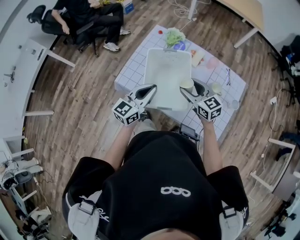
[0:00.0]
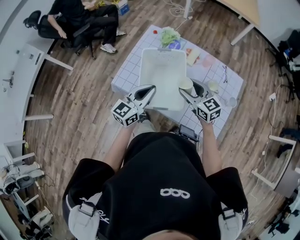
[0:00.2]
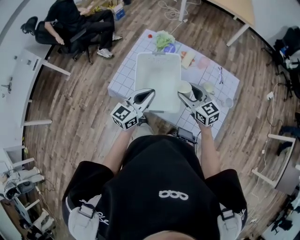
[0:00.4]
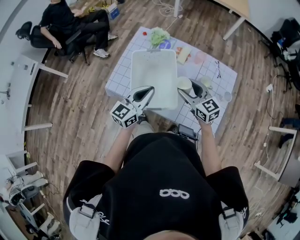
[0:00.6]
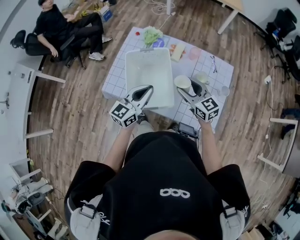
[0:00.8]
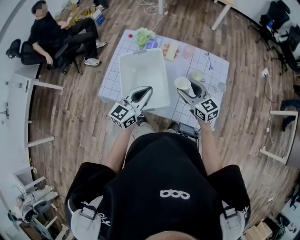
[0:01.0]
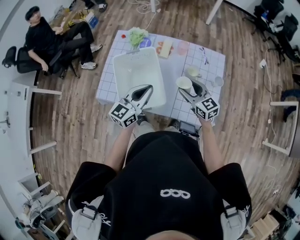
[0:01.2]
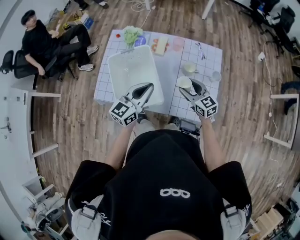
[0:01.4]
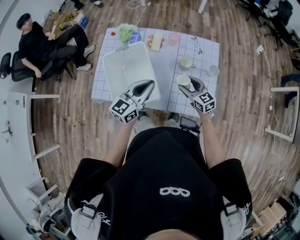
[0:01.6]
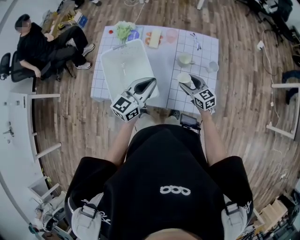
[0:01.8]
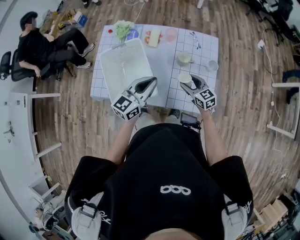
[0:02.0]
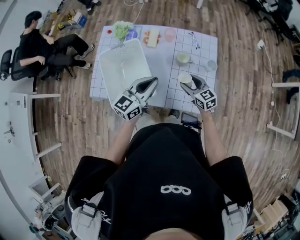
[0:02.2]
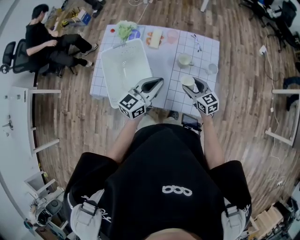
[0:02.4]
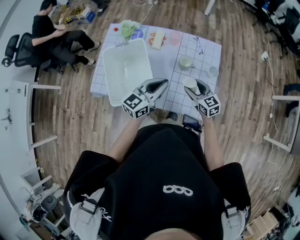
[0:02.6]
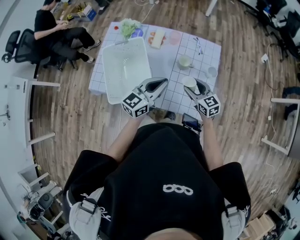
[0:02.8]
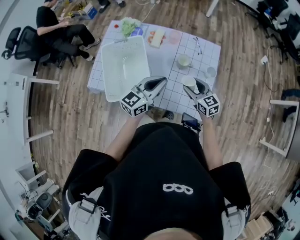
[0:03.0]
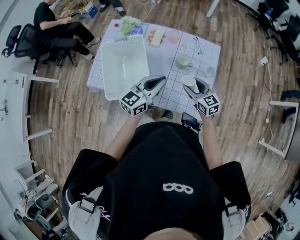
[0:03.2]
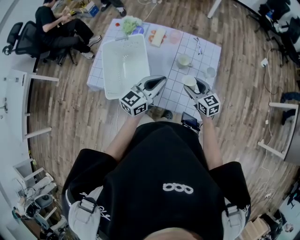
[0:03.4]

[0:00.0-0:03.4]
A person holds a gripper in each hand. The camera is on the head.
0:00.0 to 0:01.6: The right gripper is displaced to the right and downward by roughly 20 cm, and changes its angle by about 20 degrees. Meanwhile the left gripper shifts approximately 15 cm to the right.
0:01.6 to 0:03.4: The grippers both shift to the right by about 10 cm.

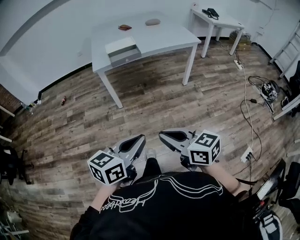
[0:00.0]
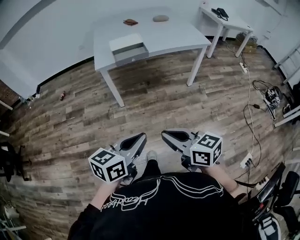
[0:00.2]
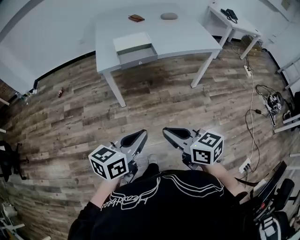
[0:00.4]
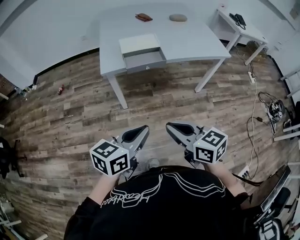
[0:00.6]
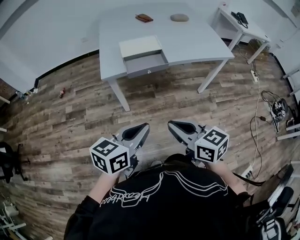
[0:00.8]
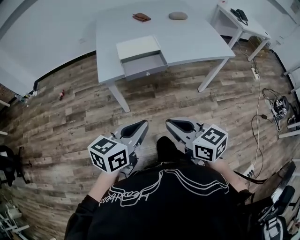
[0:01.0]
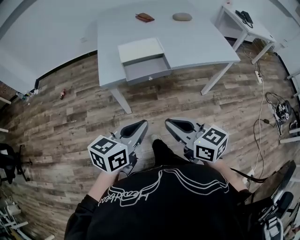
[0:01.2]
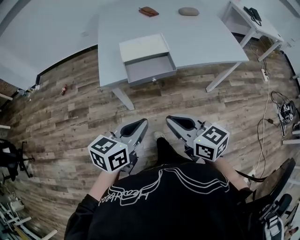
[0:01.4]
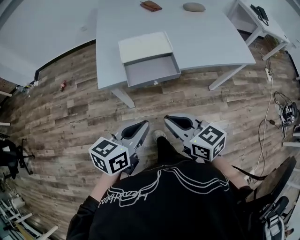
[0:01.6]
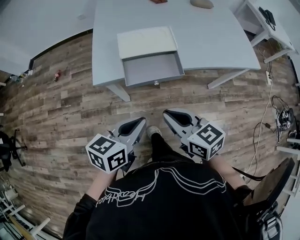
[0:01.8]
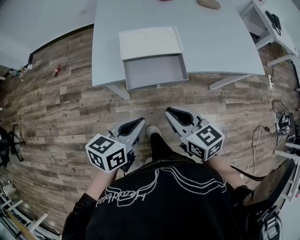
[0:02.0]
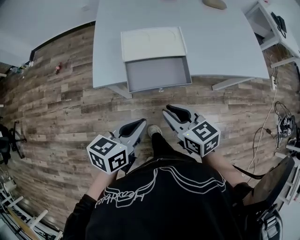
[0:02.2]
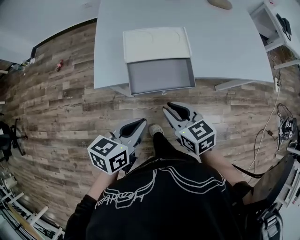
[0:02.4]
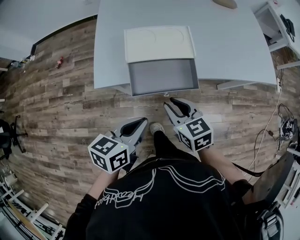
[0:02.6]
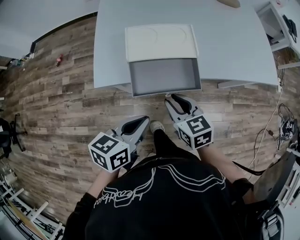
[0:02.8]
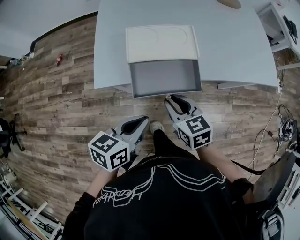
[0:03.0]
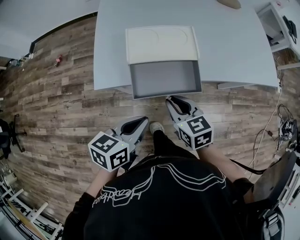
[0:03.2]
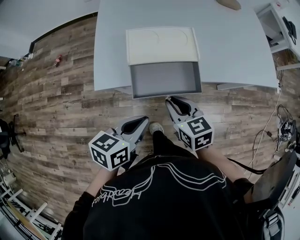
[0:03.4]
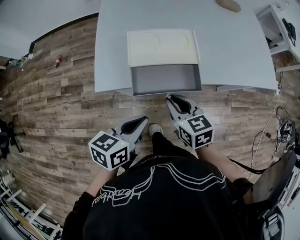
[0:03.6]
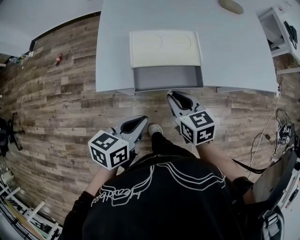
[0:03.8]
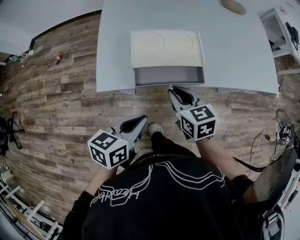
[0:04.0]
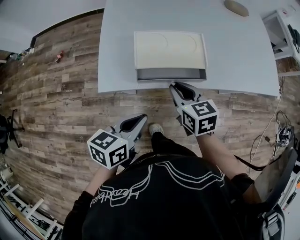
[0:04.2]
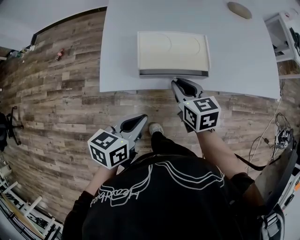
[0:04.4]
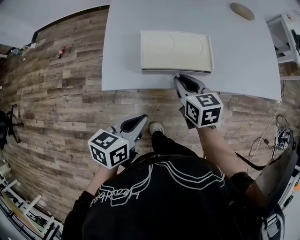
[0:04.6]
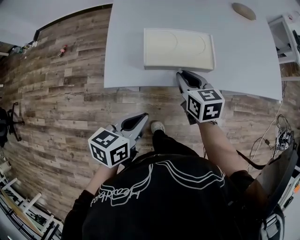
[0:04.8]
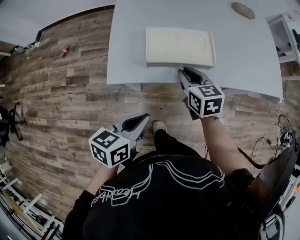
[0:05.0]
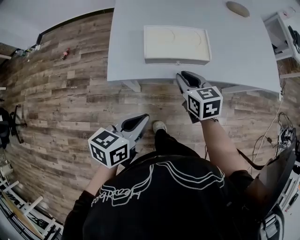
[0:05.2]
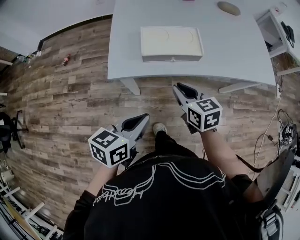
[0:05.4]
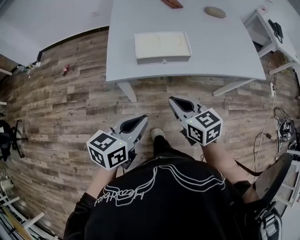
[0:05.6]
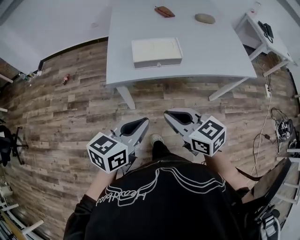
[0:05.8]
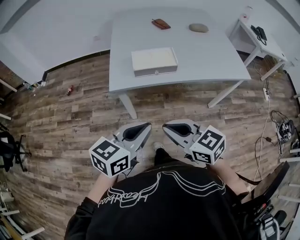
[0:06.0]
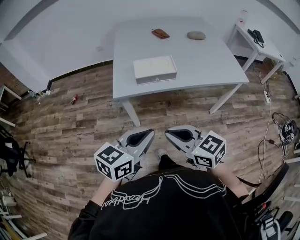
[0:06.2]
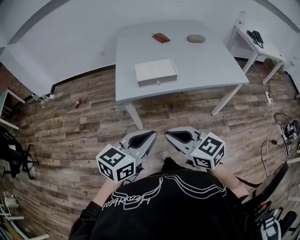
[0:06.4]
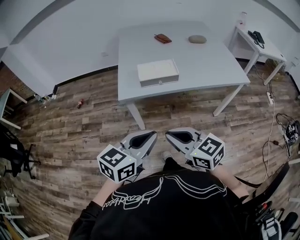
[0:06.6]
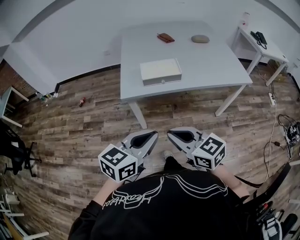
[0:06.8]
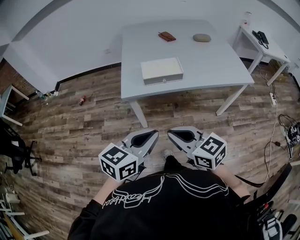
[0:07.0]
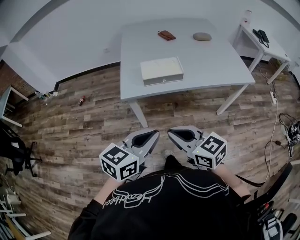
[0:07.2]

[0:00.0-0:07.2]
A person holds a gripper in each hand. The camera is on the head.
0:00.0 to 0:01.4: The two grippers travel together, forward, roughly 40 cm.
0:01.4 to 0:02.8: Both grippers move forward and downward, some 20 cm. The right gripper turns by about 20 degrees, and opens.
0:02.8 to 0:04.4: The right gripper heads forward, covering some 10 cm, while the left gripper ends up approximately 5 cm from where it was.
0:04.4 to 0:05.8: The right gripper goes about 30 cm backward and upward, and changes its angle by roughly 20 degrees, while the left gripper goes roughly 20 cm backward and upward.
0:05.8 to 0:07.2: The right gripper travels backward by roughly 10 cm; the left gripper is displaced backward and upward by roughly 10 cm.

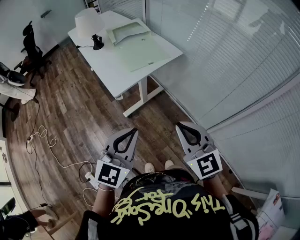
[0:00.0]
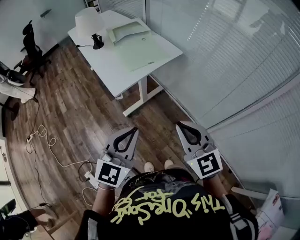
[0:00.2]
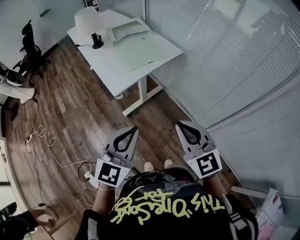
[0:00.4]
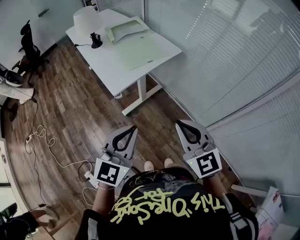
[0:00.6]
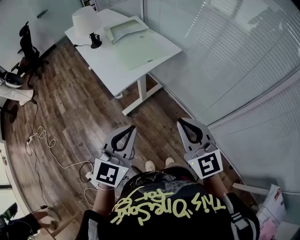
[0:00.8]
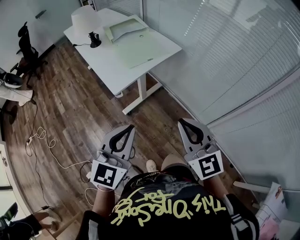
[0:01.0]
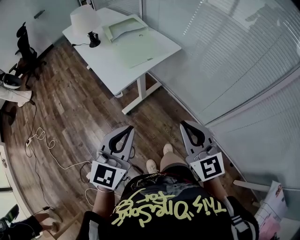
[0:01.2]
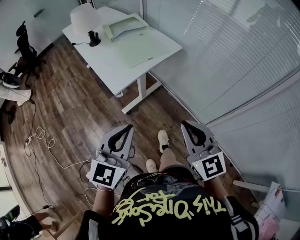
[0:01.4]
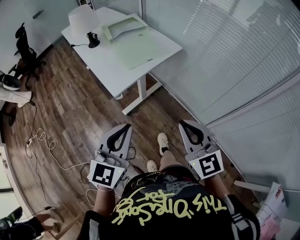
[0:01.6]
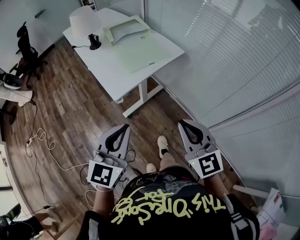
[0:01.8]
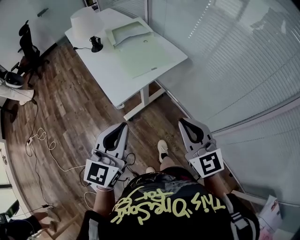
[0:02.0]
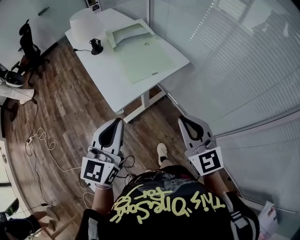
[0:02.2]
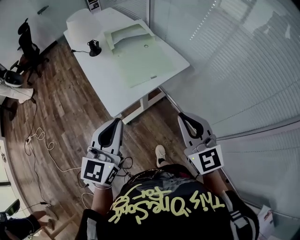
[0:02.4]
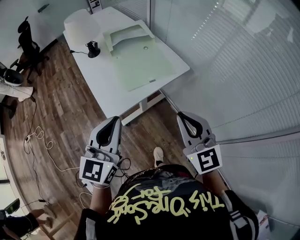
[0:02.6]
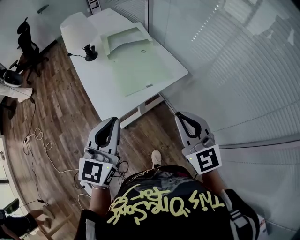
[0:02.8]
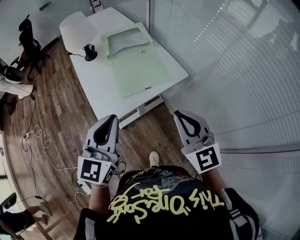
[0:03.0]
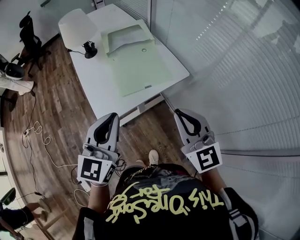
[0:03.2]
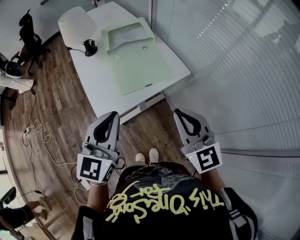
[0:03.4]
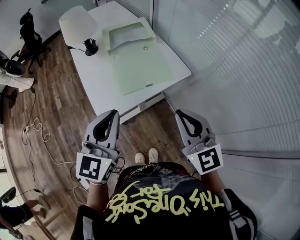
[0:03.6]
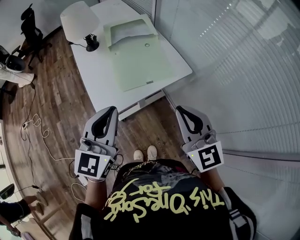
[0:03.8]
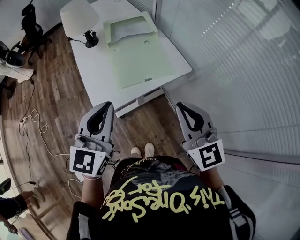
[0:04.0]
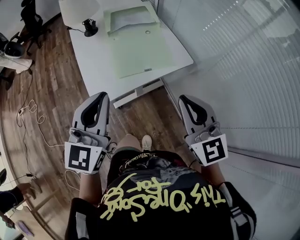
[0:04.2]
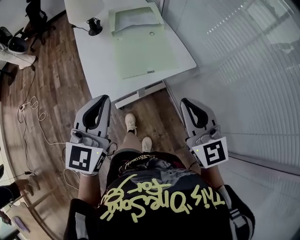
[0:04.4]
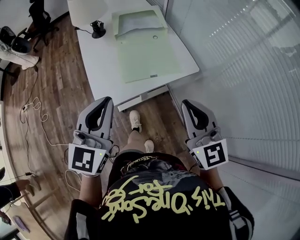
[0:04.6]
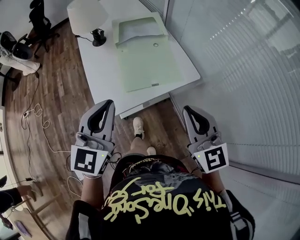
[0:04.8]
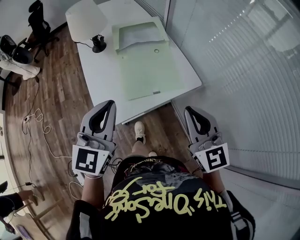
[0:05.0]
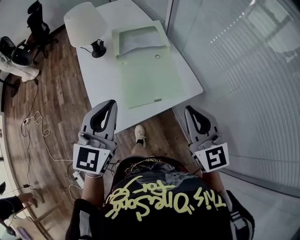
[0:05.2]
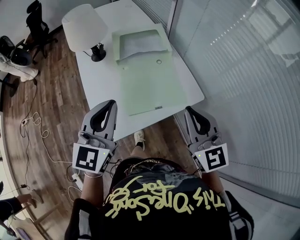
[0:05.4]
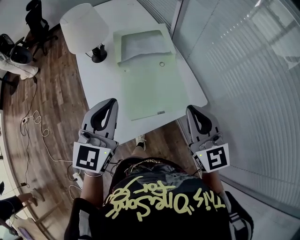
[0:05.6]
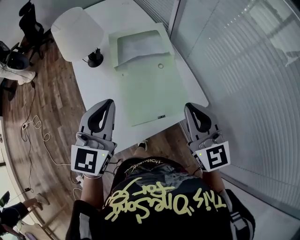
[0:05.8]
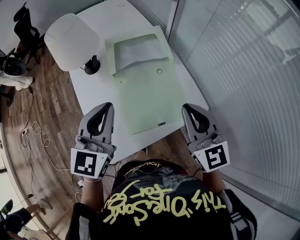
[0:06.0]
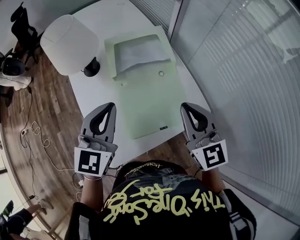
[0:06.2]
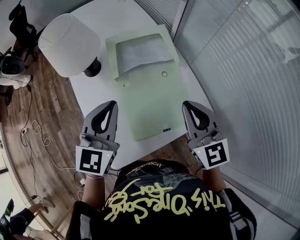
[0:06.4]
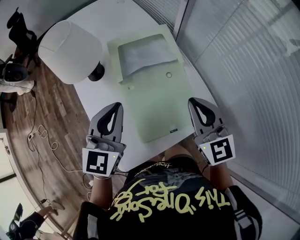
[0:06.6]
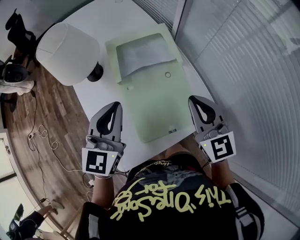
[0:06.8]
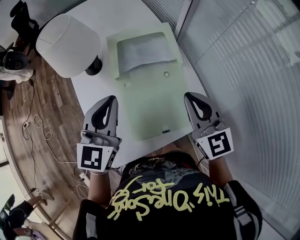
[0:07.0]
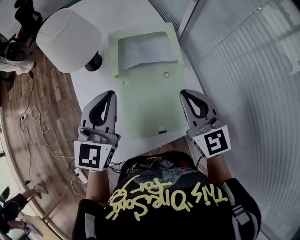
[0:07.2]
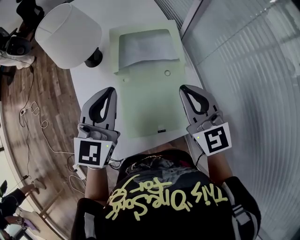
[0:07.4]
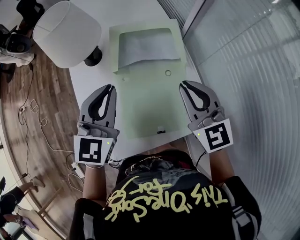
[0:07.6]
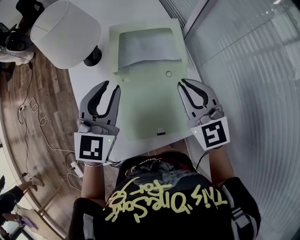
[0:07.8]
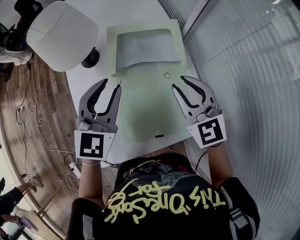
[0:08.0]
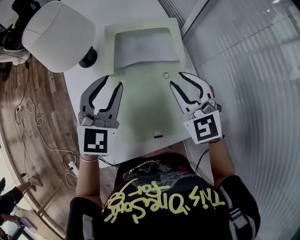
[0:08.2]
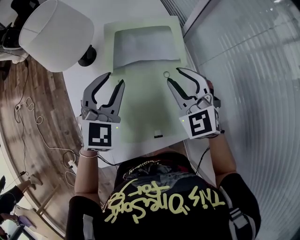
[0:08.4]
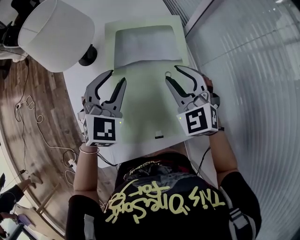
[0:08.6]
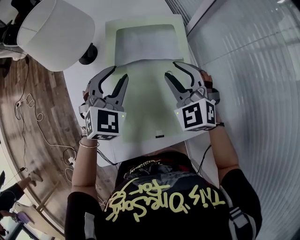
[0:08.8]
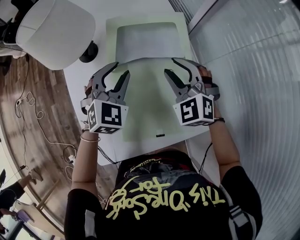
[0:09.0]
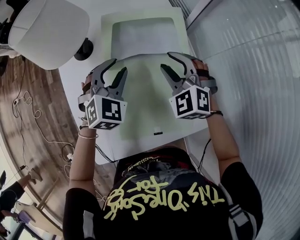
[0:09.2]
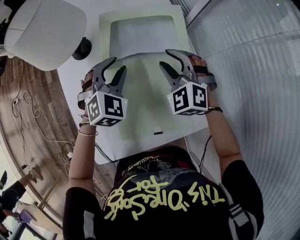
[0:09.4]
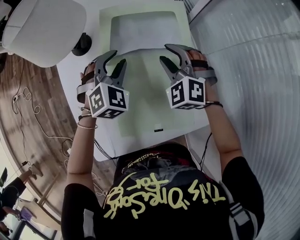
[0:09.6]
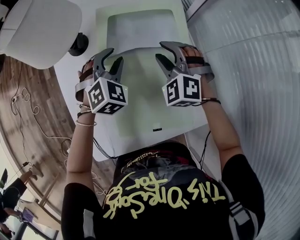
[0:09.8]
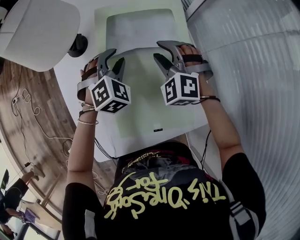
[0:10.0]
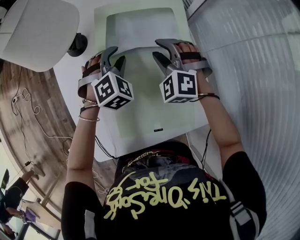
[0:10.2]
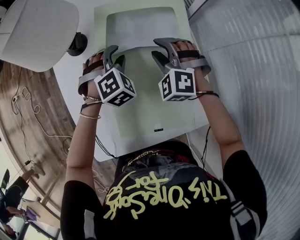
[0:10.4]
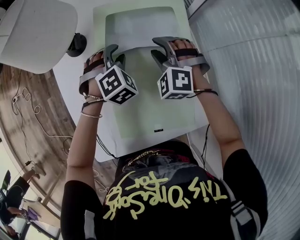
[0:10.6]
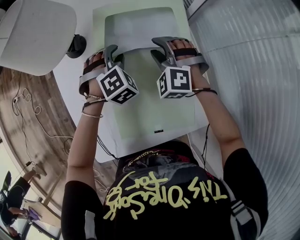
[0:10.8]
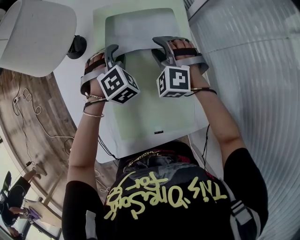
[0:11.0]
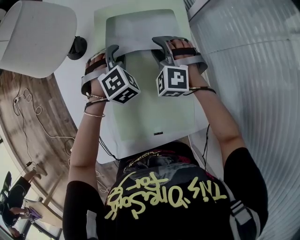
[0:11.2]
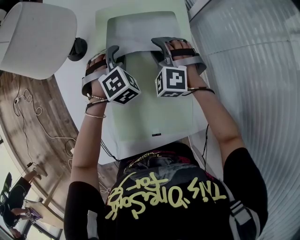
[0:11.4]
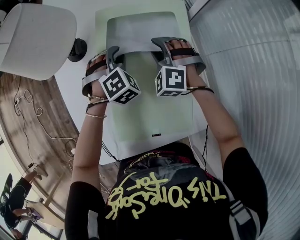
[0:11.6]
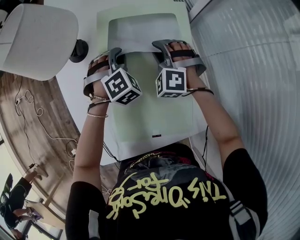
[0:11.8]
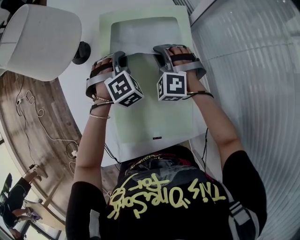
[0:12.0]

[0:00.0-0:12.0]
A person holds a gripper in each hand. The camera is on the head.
0:00.0 to 0:01.6: The grippers make only small movements.
0:01.6 to 0:03.0: Both grippers move forward, about 20 cm.
0:03.0 to 0:04.4: The grippers stay close to where they were, moving slightly.
0:04.4 to 0:06.0: The grippers both shift forward by some 25 cm.
0:06.0 to 0:07.6: The grippers both shift forward by roughly 10 cm.
0:07.6 to 0:09.0: Both grippers travel together downward and forward, roughly 15 cm. The right gripper turns by some 40 degrees, and opens up. Meanwhile the left gripper swivels some 30 degrees, and opens up.
0:09.0 to 0:10.4: Both grippers move downward, some 10 cm. The left gripper turns by some 30 degrees.
0:10.4 to 0:12.0: The right gripper closes, while the left gripper closes.

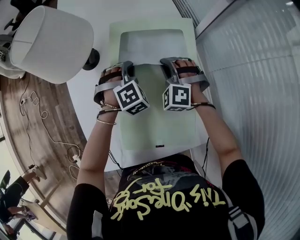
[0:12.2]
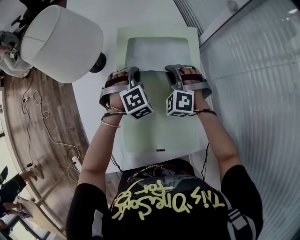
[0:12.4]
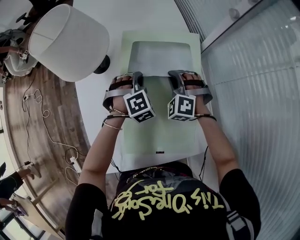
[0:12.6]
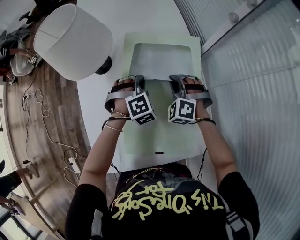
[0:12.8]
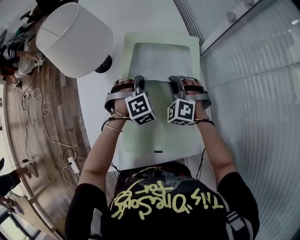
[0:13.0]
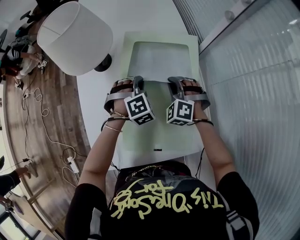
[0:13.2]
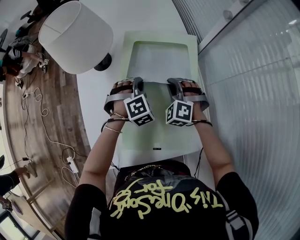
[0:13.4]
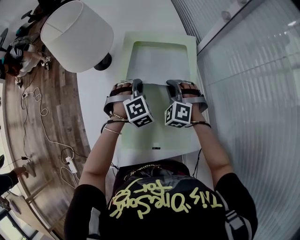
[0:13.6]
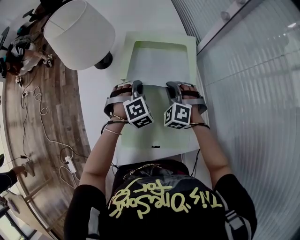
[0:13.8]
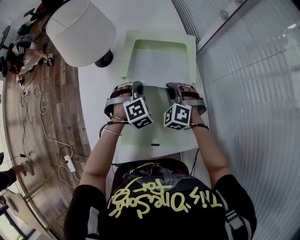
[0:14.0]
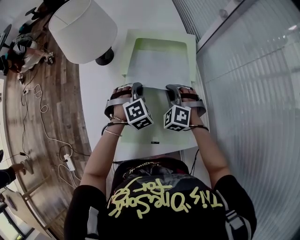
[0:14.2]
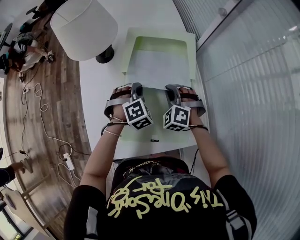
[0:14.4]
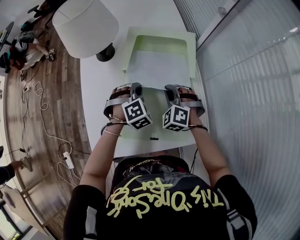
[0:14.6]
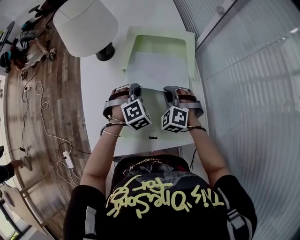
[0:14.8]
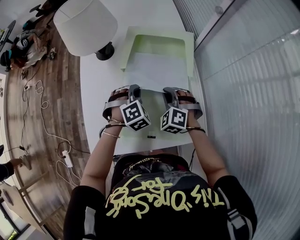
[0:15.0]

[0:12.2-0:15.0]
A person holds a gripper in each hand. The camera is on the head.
0:12.2 to 0:13.6: The two grippers go some 5 cm backward.
0:13.6 to 0:15.0: Both grippers move backward, about 5 cm.
